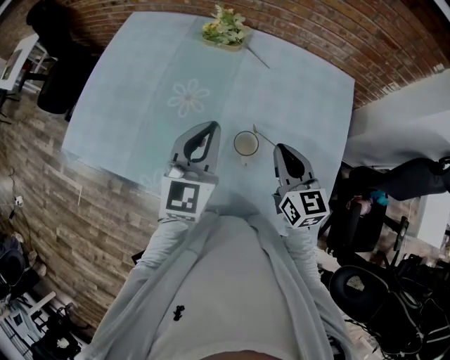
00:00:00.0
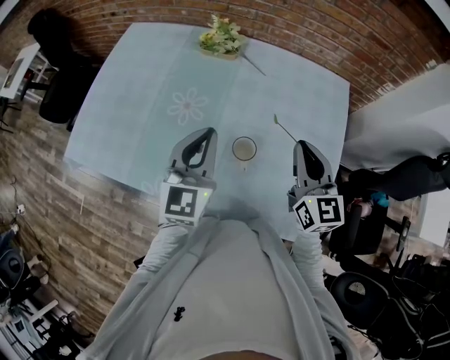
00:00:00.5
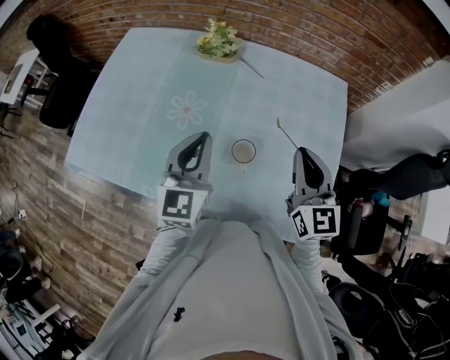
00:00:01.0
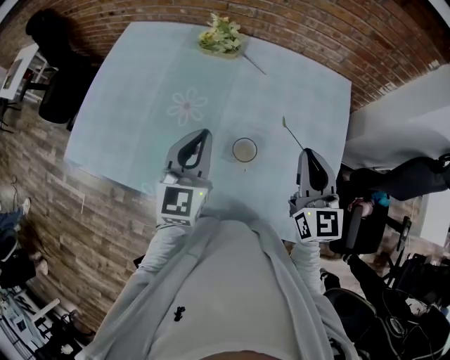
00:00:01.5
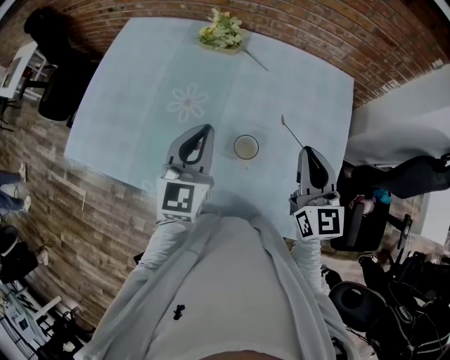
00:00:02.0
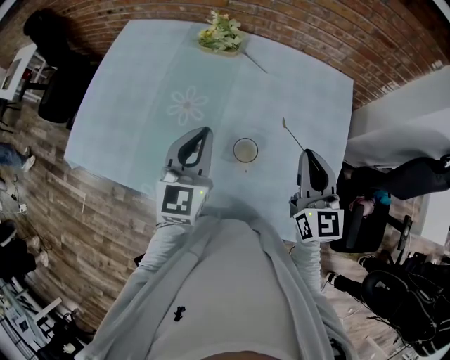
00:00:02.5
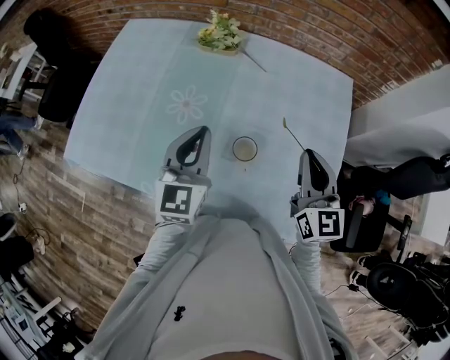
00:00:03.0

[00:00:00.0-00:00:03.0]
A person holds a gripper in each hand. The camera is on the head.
00:00:00.0 to 00:00:01.5: The right gripper is displaced upward and to the right by some 10 cm.
00:00:01.5 to 00:00:03.0: The two grippers keep their place.

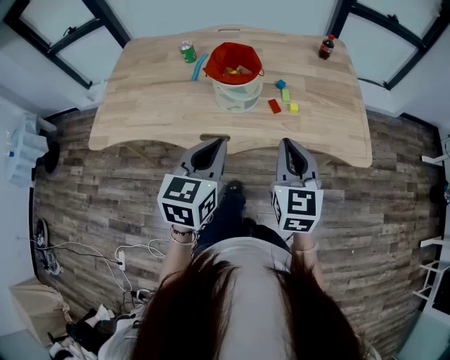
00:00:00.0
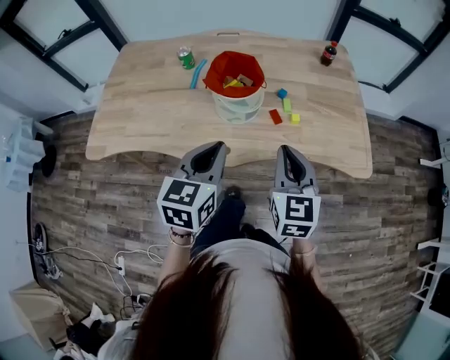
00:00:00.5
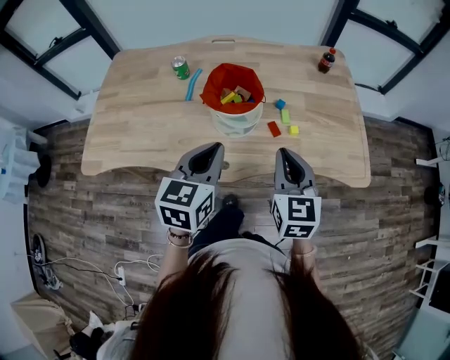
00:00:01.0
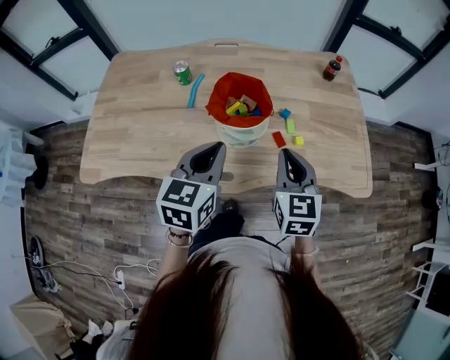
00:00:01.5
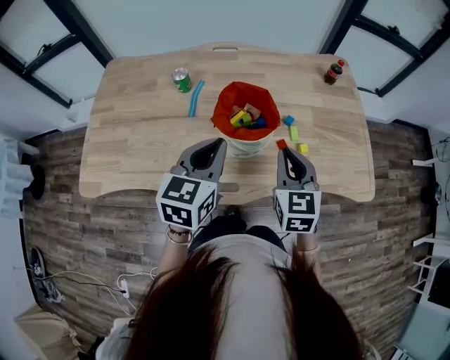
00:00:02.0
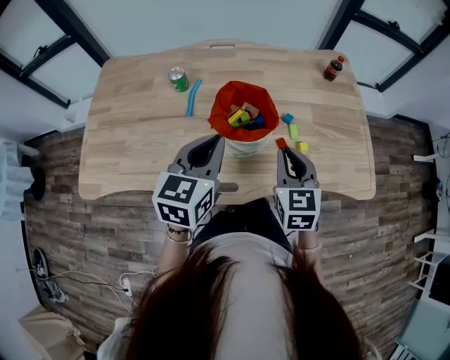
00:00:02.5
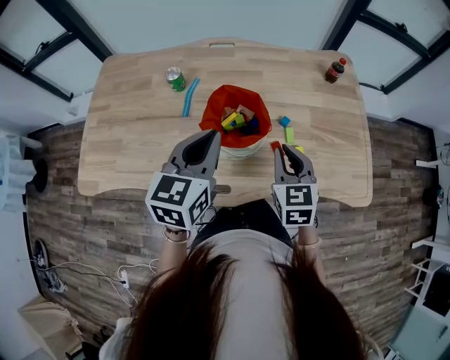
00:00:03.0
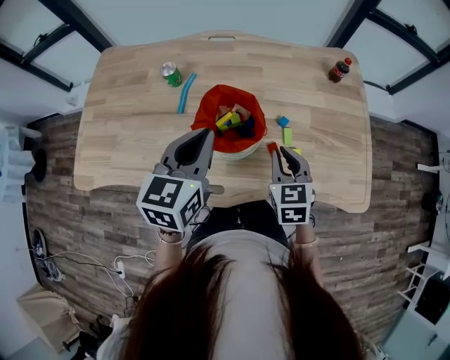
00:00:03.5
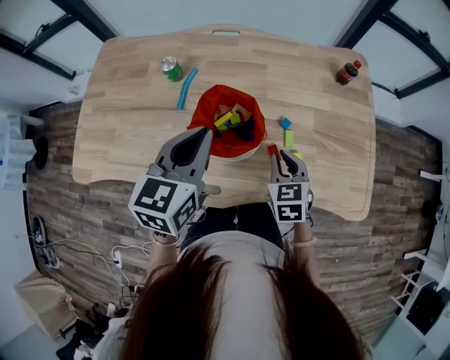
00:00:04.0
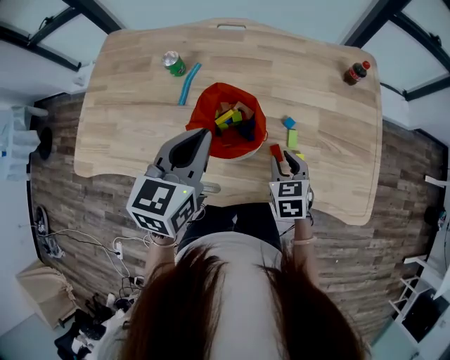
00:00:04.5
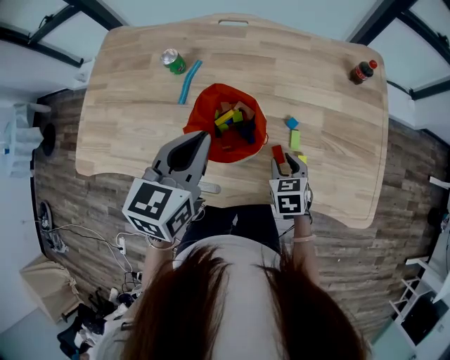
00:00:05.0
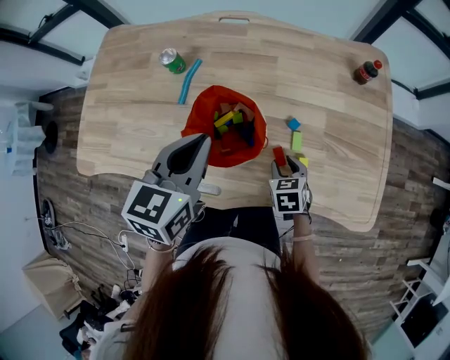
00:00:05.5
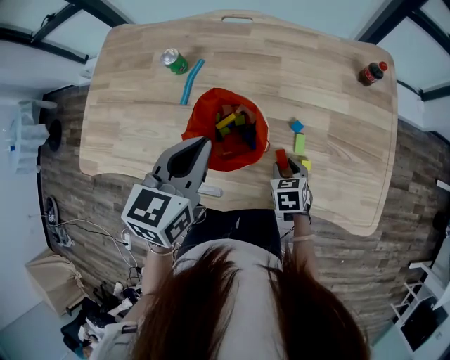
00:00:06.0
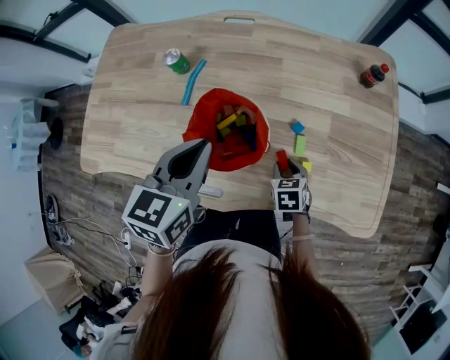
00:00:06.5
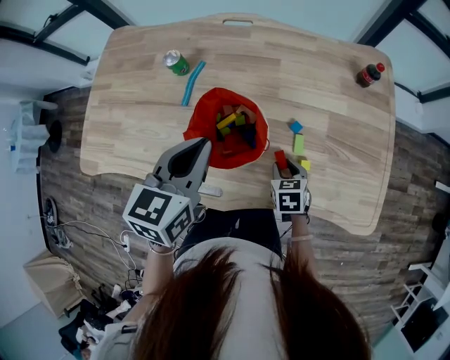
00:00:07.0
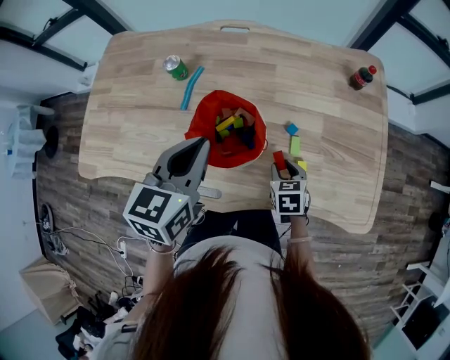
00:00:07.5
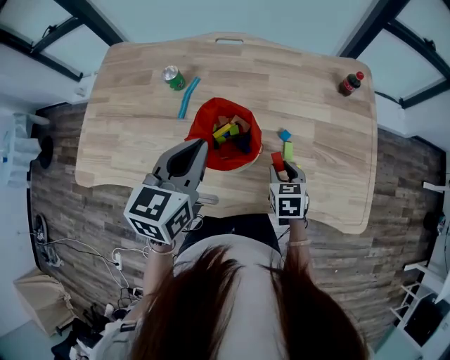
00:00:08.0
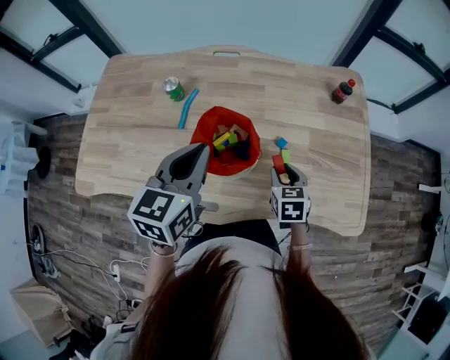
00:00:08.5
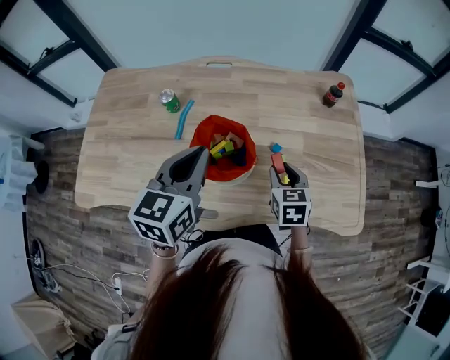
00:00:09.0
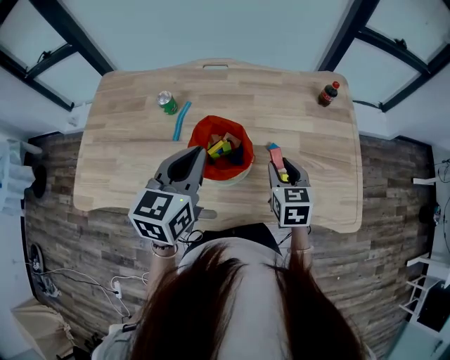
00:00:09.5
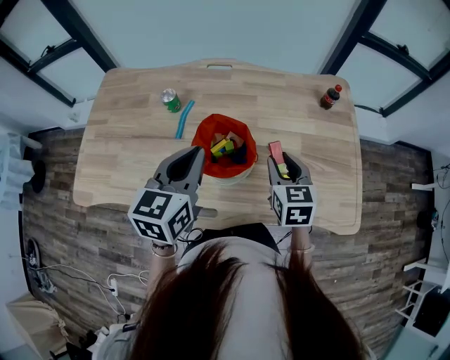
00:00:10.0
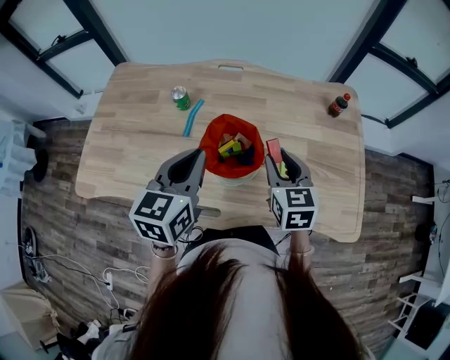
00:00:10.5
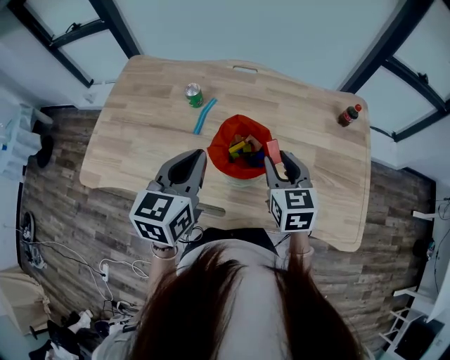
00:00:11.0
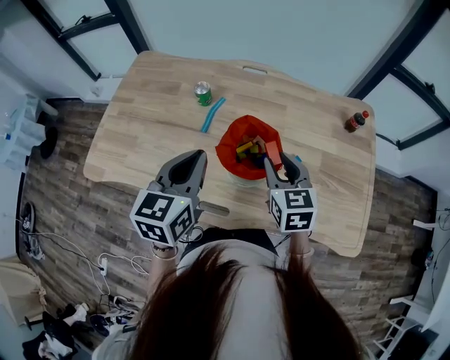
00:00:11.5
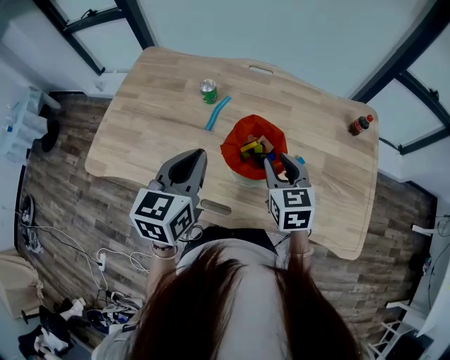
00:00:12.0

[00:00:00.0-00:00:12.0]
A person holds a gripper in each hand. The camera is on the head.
00:00:00.0 to 00:00:02.0: Both grippers travel together forward and to the left, approximately 20 cm.
00:00:02.0 to 00:00:04.0: The left gripper shifts roughly 5 cm forward, while the right gripper heads downward and forward, covering approximately 15 cm, and turns by some 20 degrees.
00:00:04.0 to 00:00:06.0: The right gripper goes roughly 15 cm downward, and opens up.
00:00:06.0 to 00:00:08.0: The right gripper moves upward, roughly 5 cm.
00:00:08.0 to 00:00:10.0: The right gripper travels upward by some 15 cm.
00:00:10.0 to 00:00:12.0: Both grippers travel together to the left, roughly 10 cm.

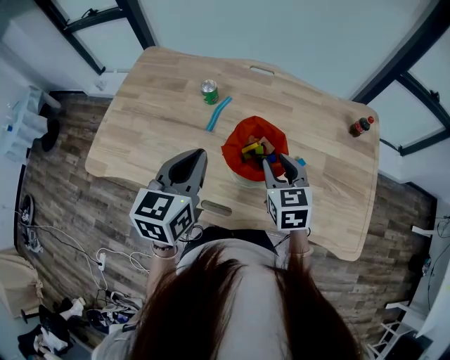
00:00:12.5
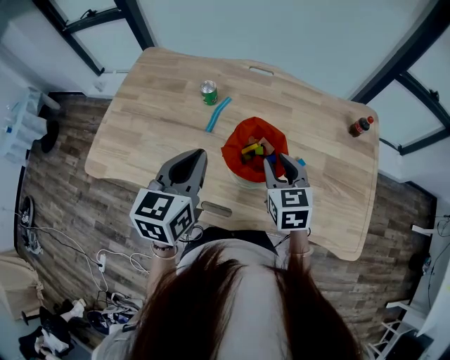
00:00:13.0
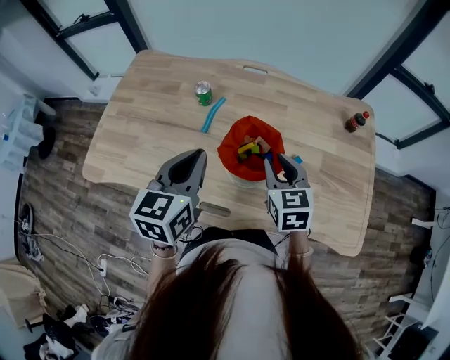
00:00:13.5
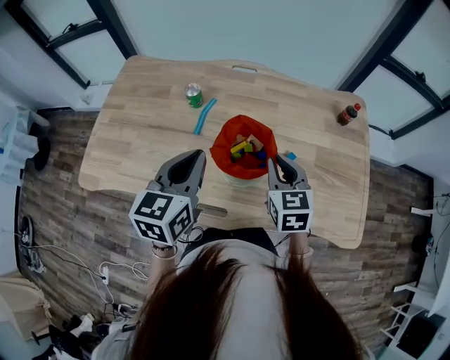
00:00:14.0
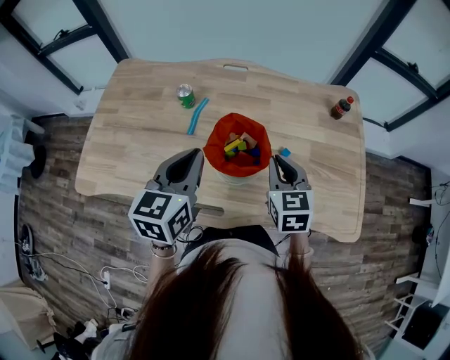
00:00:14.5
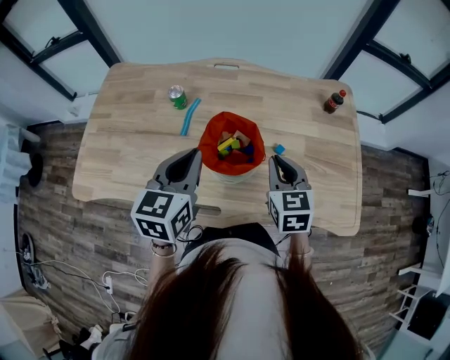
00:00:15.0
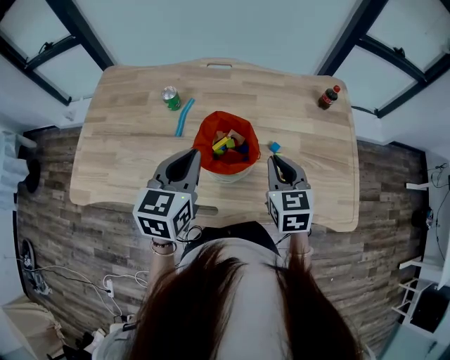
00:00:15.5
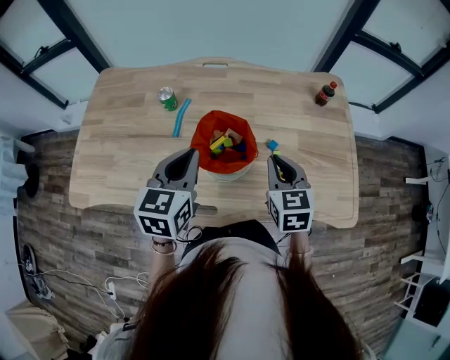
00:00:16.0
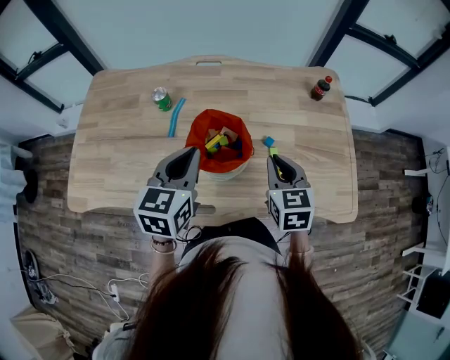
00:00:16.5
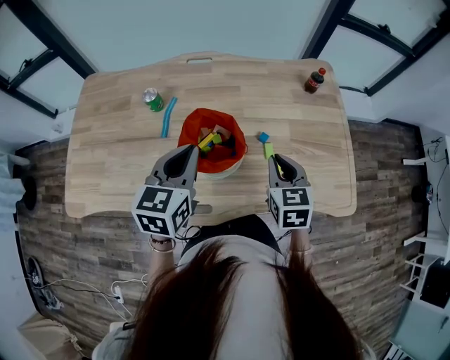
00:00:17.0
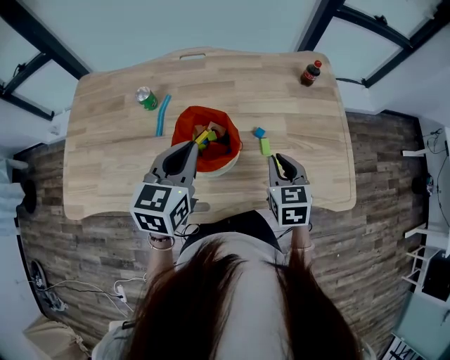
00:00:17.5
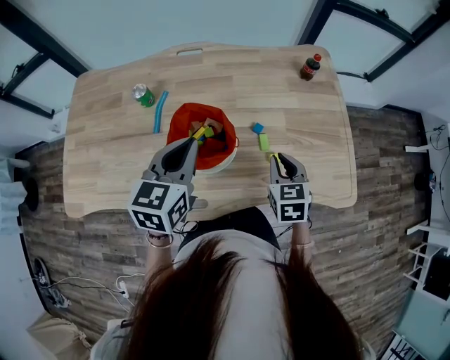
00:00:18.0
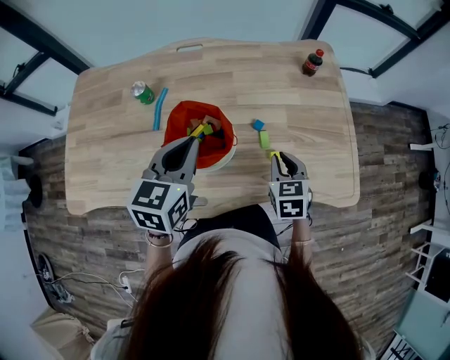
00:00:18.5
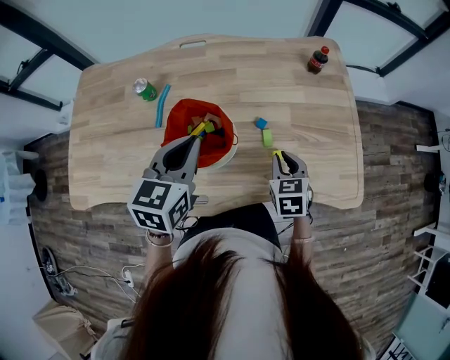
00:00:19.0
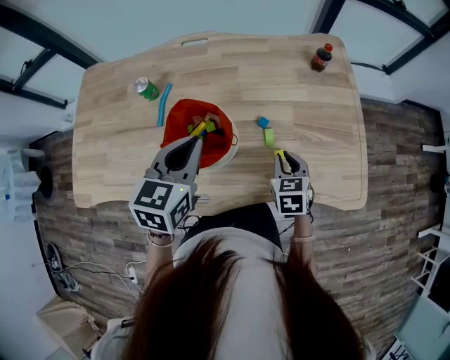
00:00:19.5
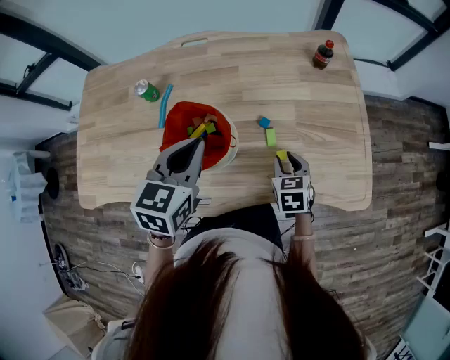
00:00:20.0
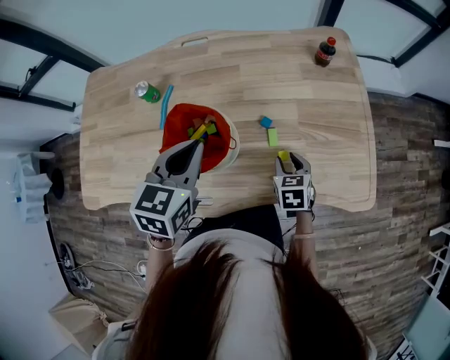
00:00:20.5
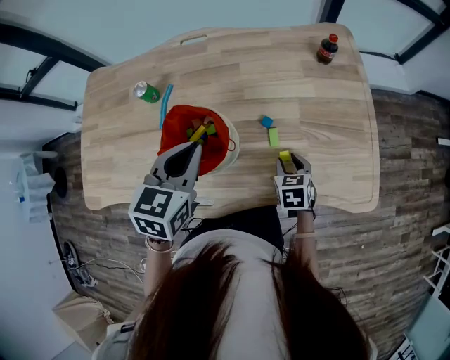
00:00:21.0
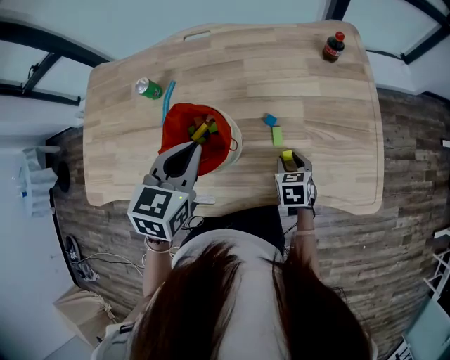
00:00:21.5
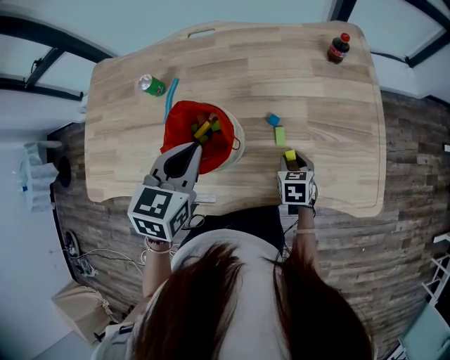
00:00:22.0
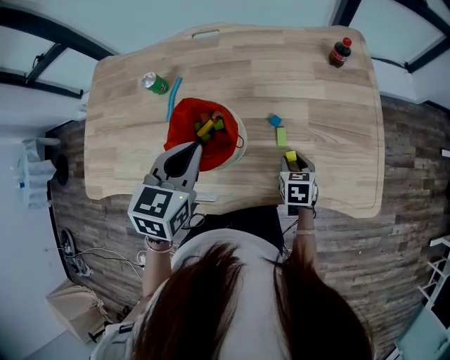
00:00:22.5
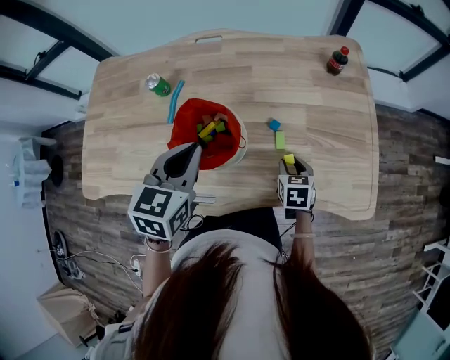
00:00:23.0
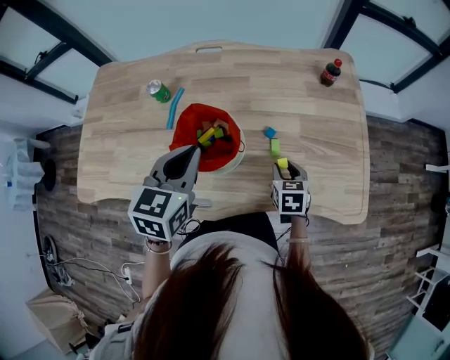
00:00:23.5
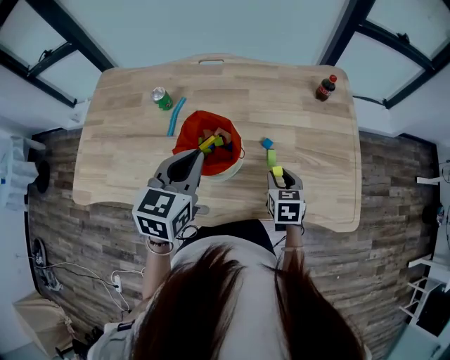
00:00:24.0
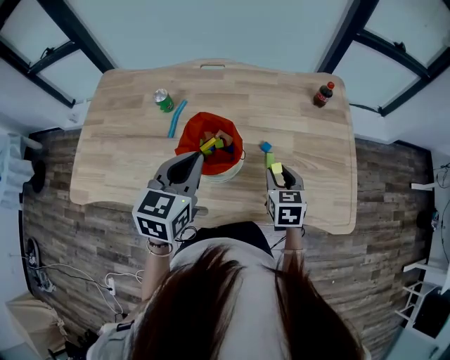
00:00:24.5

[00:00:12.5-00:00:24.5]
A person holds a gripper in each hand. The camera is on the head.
00:00:12.5 to 00:00:14.5: The right gripper moves to the right, approximately 5 cm, and closes.
00:00:14.5 to 00:00:16.5: The left gripper ends up some 5 cm from where it was. Meanwhile the right gripper ends up some 5 cm from where it was.
00:00:16.5 to 00:00:18.5: The right gripper is displaced downward and to the right by some 10 cm. The left gripper moves to the right, approximately 5 cm.
00:00:18.5 to 00:00:20.5: The right gripper travels downward by about 10 cm, and opens its fingers.
00:00:20.5 to 00:00:22.5: The grippers stay close to where they were, moving slightly.
00:00:22.5 to 00:00:24.5: The left gripper changes place by roughly 5 cm. The right gripper goes about 15 cm upward.
